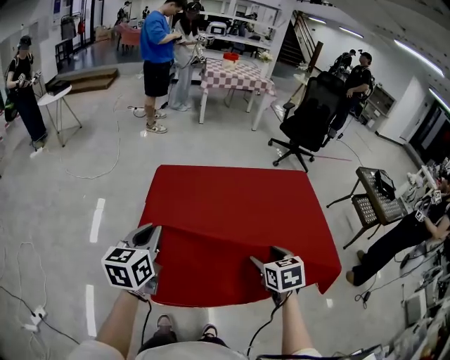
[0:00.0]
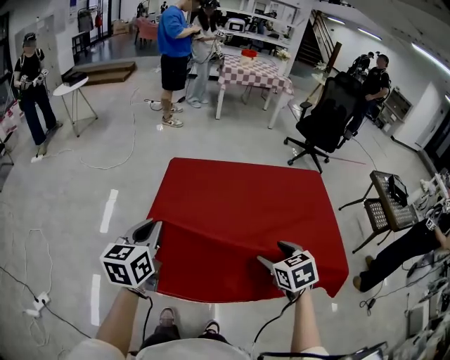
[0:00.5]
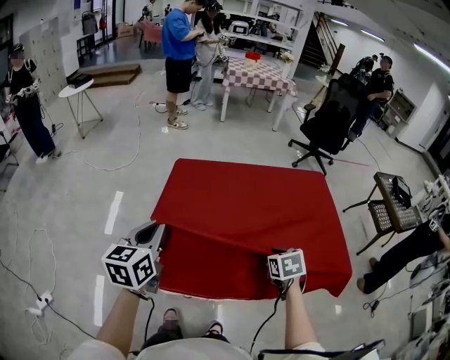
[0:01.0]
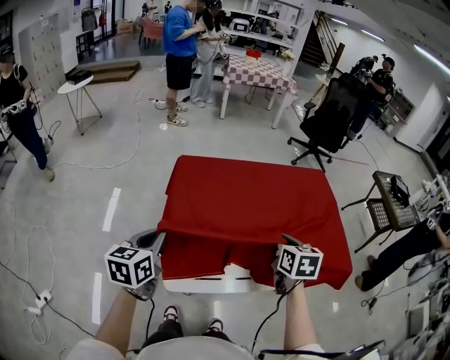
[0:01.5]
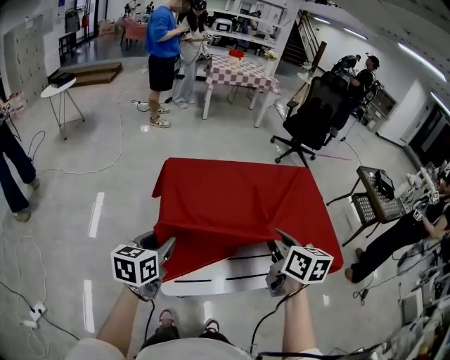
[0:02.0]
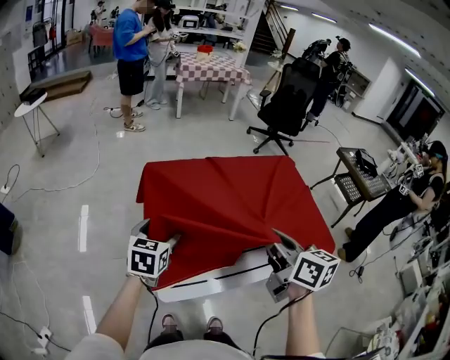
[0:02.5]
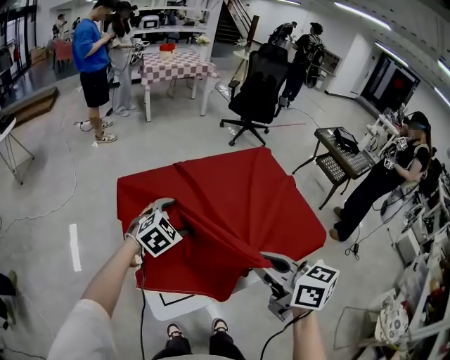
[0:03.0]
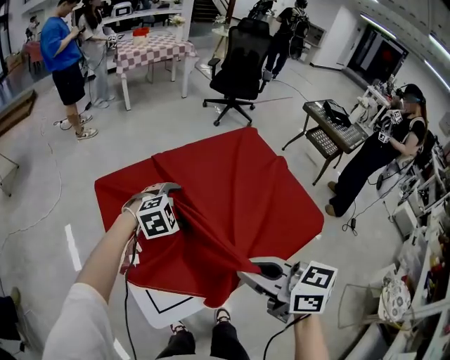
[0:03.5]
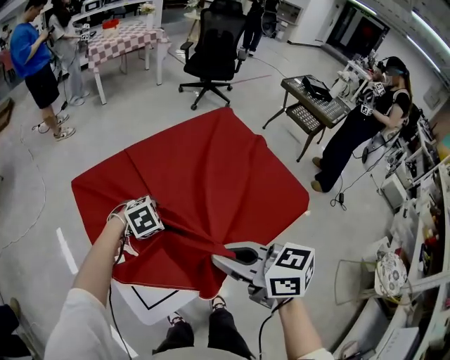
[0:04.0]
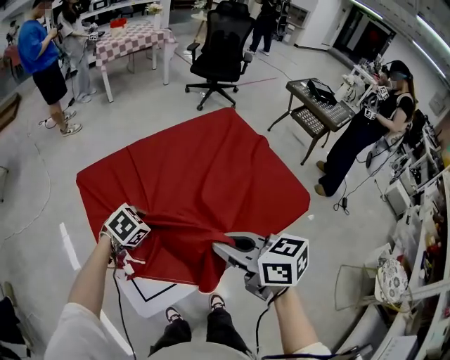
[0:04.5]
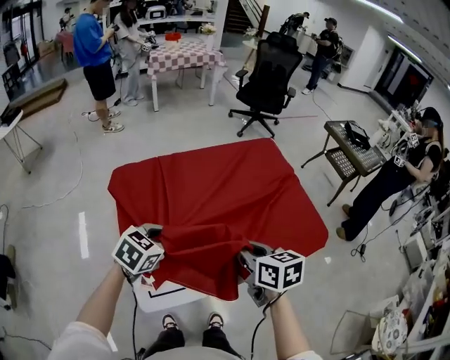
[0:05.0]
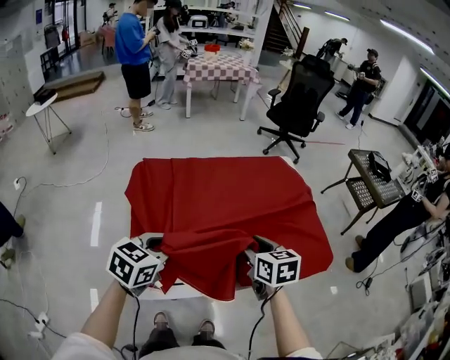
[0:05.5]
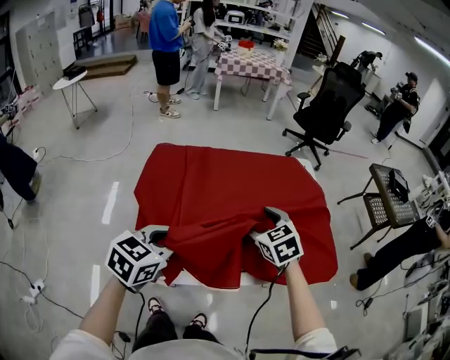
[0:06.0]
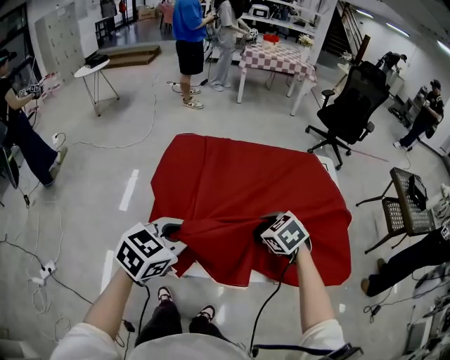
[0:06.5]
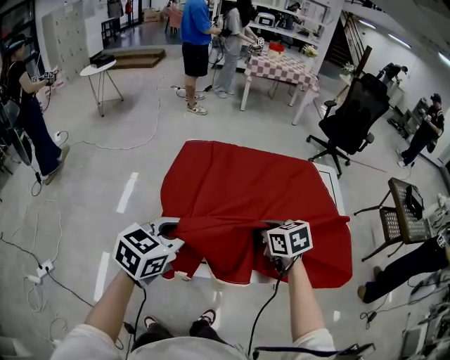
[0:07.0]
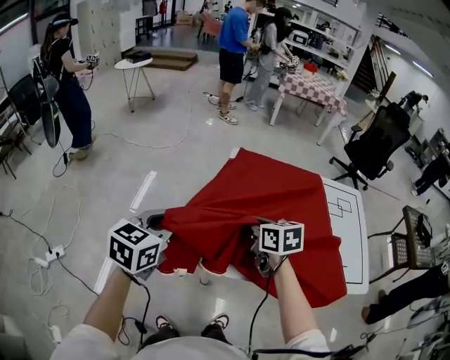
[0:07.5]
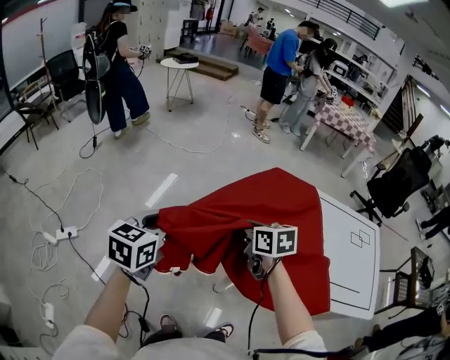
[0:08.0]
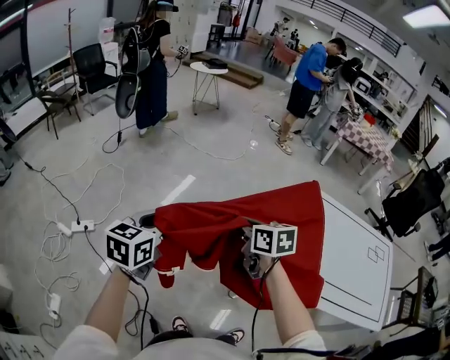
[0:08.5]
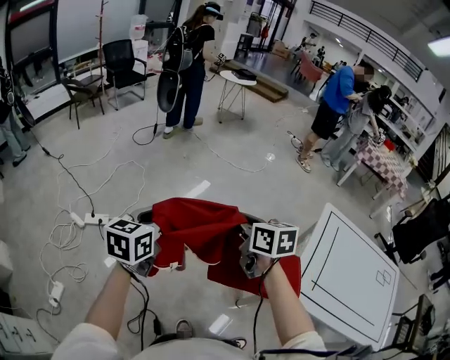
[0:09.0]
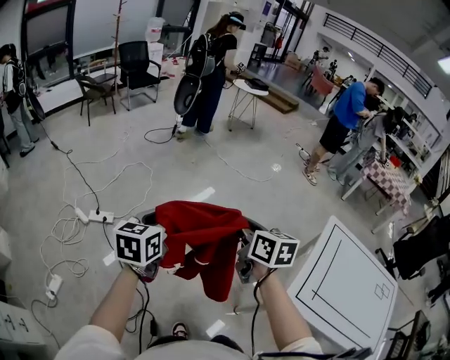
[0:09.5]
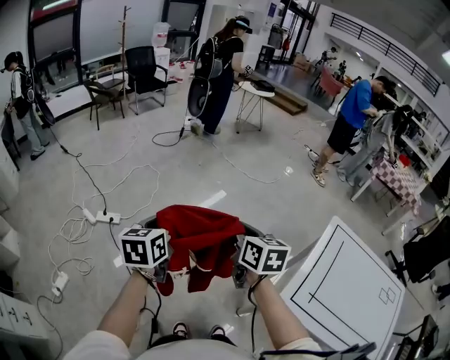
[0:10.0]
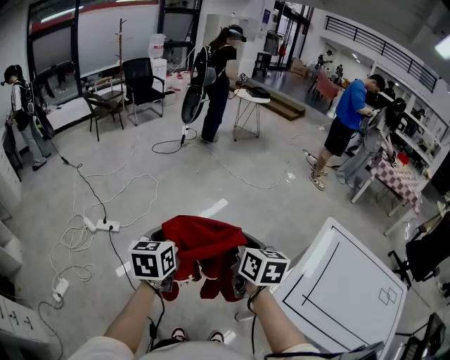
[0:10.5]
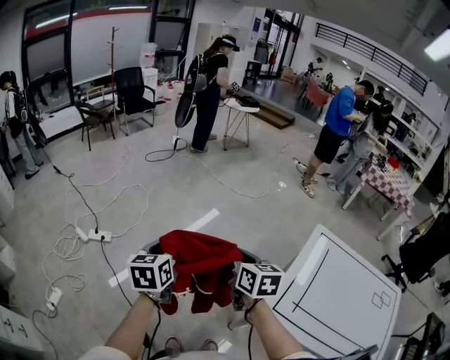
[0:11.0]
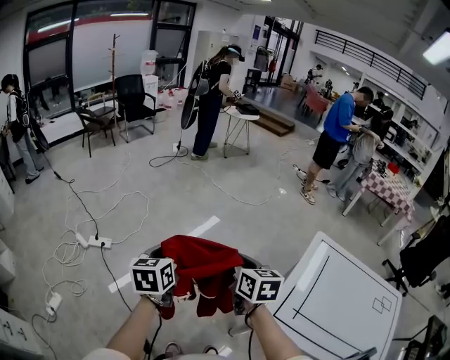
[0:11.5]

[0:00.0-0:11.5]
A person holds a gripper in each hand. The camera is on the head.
0:00.0 to 0:02.0: The right gripper shifts roughly 10 cm upward and to the left, swivels some 30 degrees, and closes, while the left gripper moves downward, roughly 5 cm.
0:02.0 to 0:04.0: The left gripper heads to the right, forward and downward, covering roughly 25 cm, points its fingers some 40 degrees further downward, and opens, then closes once more; the right gripper shifts approximately 10 cm backward.
0:04.0 to 0:06.0: The right gripper moves forward and downward, about 20 cm, rolls counterclockwise, seen from behind, by some 40 degrees, and opens up. The left gripper shifts roughly 20 cm upward and backward, tips its fingers upward by approximately 40 degrees, and closes its fingers.
0:06.0 to 0:07.5: The left gripper shifts by about 25 cm, and turns by roughly 30 degrees, while the right gripper ends up approximately 25 cm from where it was, swivels roughly 30 degrees, and closes.
0:07.5 to 0:09.5: Both grippers are carried roughly 40 cm. The left gripper turns by approximately 50 degrees, while the right gripper turns by approximately 30 degrees.
0:09.5 to 0:11.5: The grippers both shift to the right by some 10 cm.

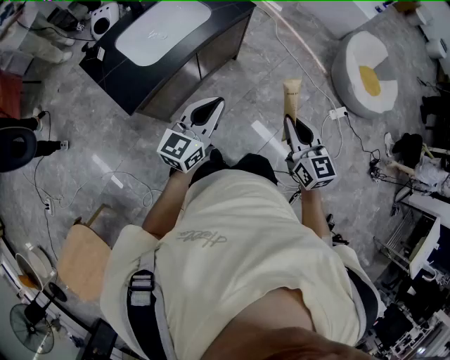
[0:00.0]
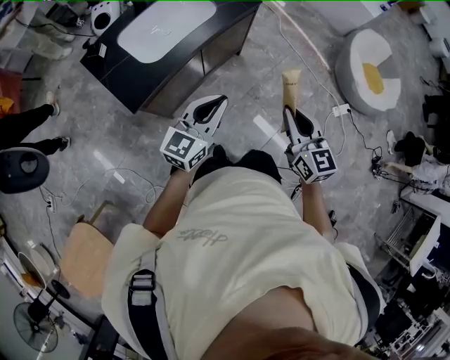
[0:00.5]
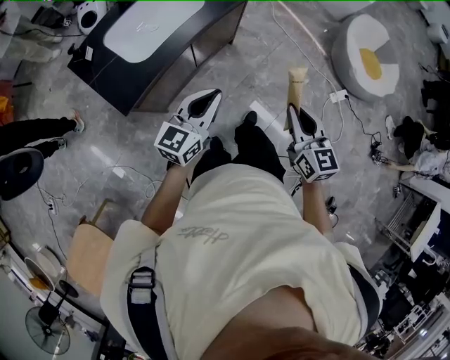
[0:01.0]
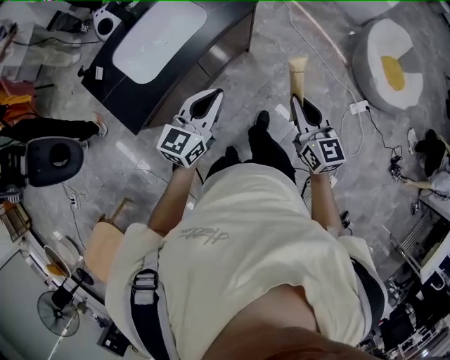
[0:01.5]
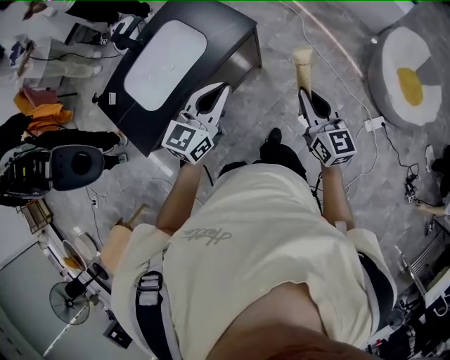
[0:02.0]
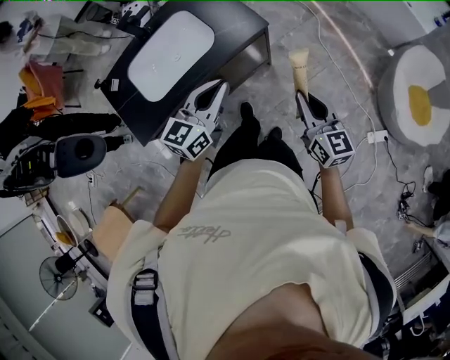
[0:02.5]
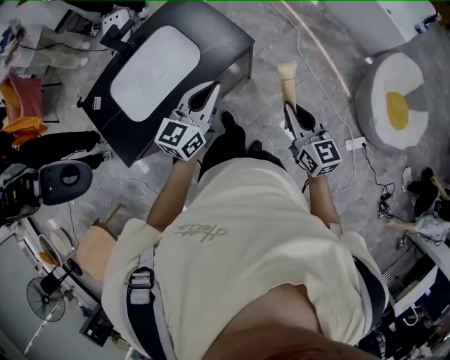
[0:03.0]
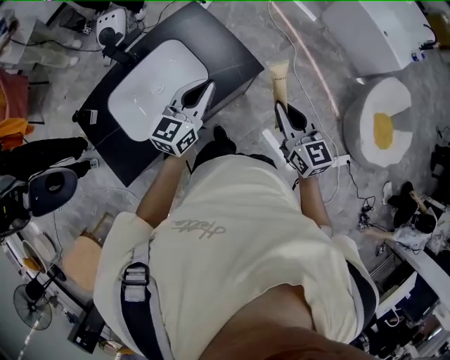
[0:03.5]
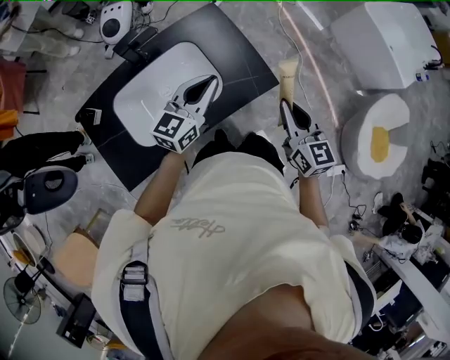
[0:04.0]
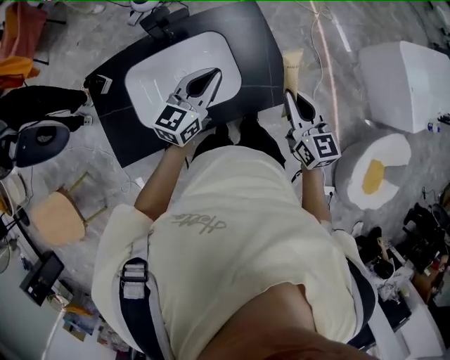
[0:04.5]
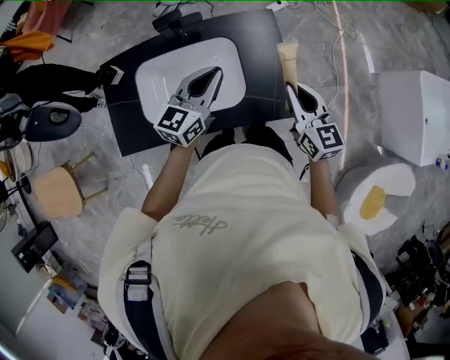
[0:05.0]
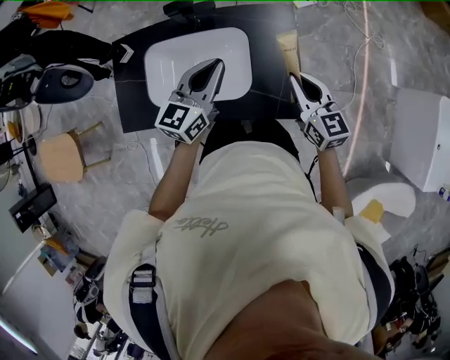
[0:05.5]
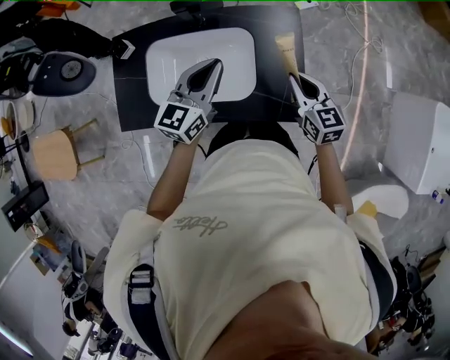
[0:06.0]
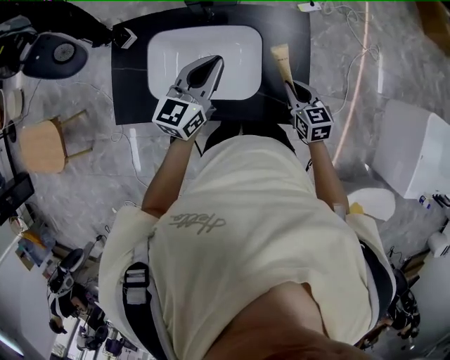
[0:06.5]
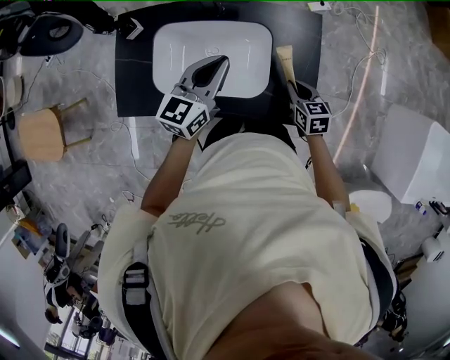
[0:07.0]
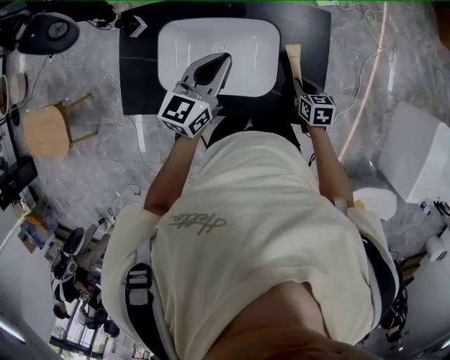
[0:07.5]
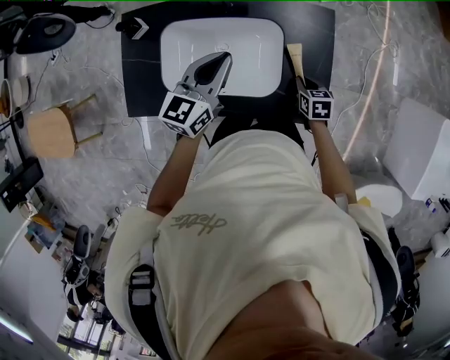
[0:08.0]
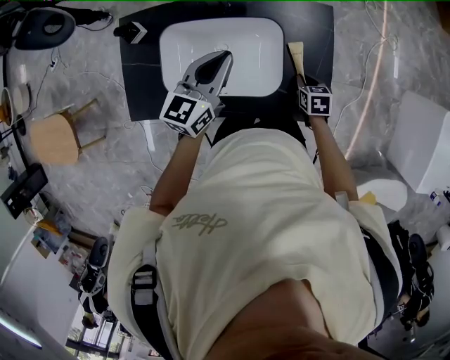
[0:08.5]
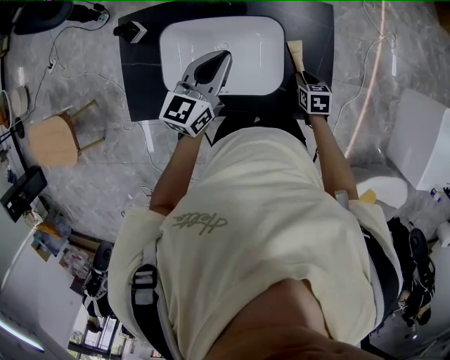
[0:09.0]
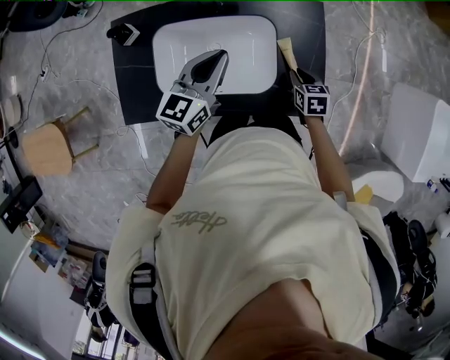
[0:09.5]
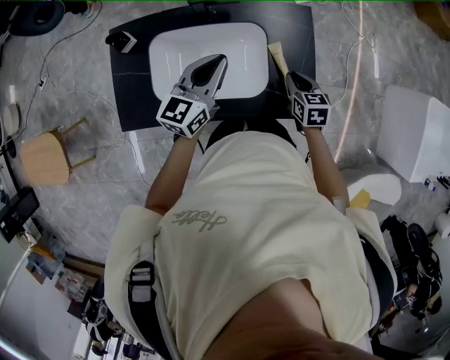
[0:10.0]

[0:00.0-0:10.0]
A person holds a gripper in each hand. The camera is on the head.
0:00.0 to 0:02.0: The grippers both shift forward by about 30 cm.
0:02.0 to 0:04.0: Both grippers move forward and to the left, some 35 cm.
0:04.0 to 0:06.0: The right gripper ends up approximately 25 cm from where it was, and swivels approximately 40 degrees; the left gripper ends up about 10 cm from where it was, and rotates roughly 40 degrees.
0:06.0 to 0:08.0: The right gripper is displaced downward by roughly 20 cm, and tips its fingers downward by some 30 degrees, while the left gripper travels to the left by approximately 10 cm.
0:08.0 to 0:10.0: The right gripper heads upward, covering approximately 10 cm.

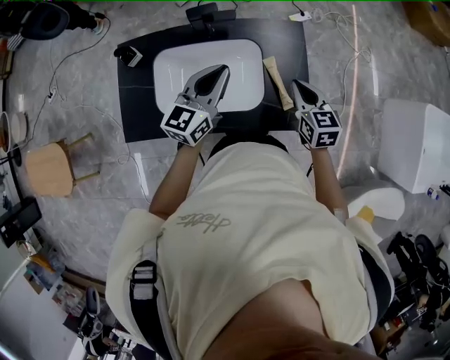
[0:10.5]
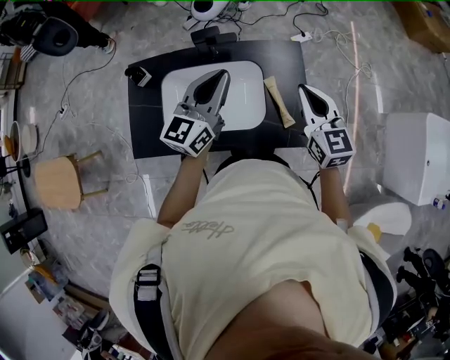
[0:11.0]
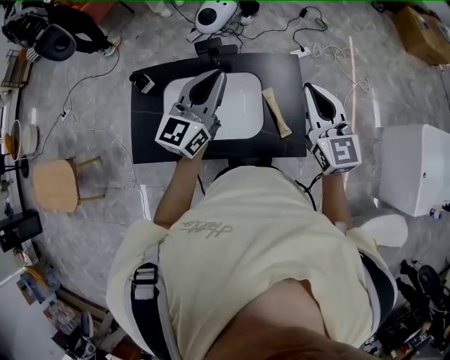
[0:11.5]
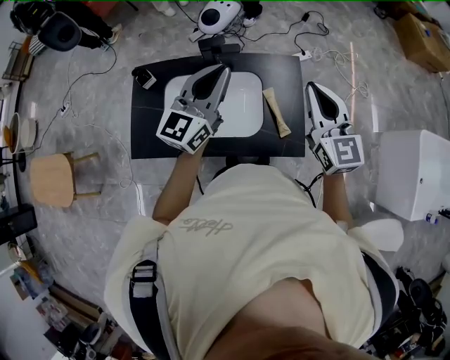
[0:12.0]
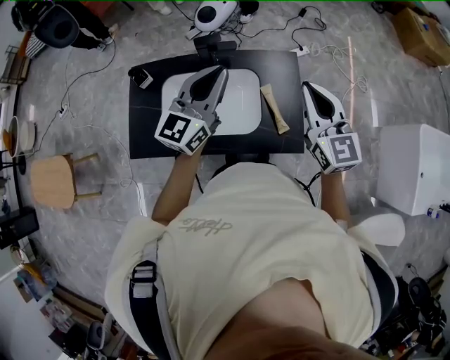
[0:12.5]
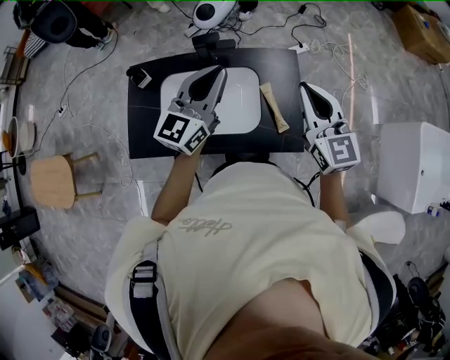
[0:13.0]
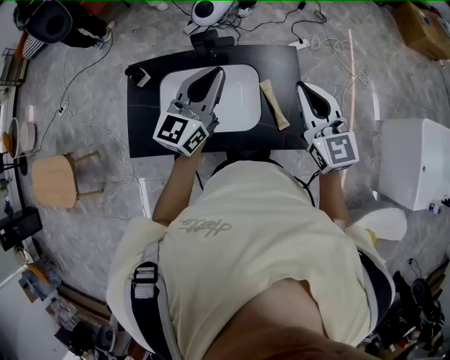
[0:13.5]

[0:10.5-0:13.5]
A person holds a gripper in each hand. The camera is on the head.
0:10.5 to 0:12.0: The left gripper goes approximately 15 cm upward. Meanwhile the right gripper travels upward by roughly 20 cm, and rotates roughly 30 degrees.
0:12.0 to 0:13.5: There are only small adjustments of the grippers.

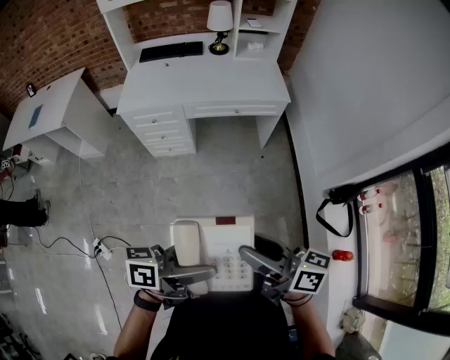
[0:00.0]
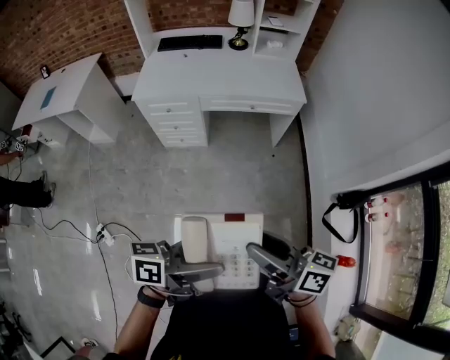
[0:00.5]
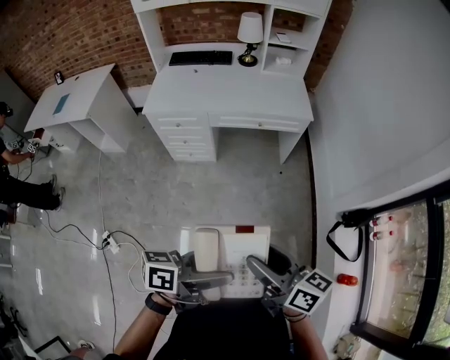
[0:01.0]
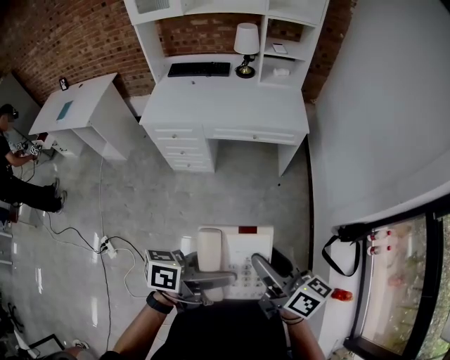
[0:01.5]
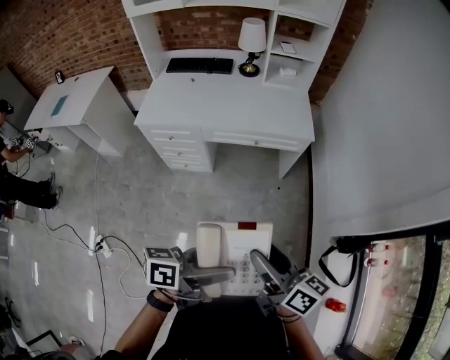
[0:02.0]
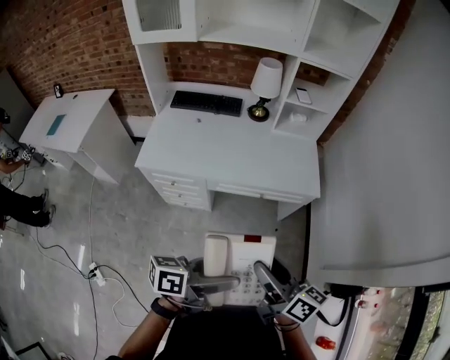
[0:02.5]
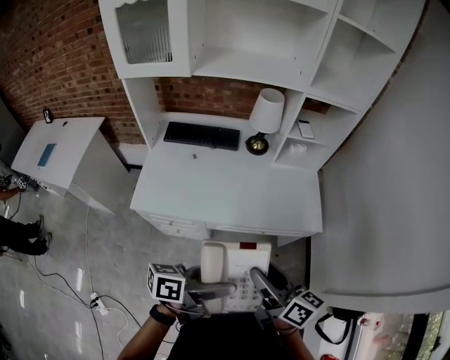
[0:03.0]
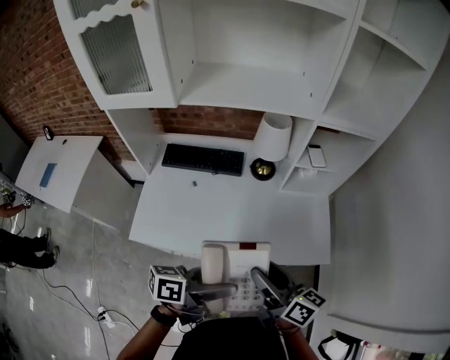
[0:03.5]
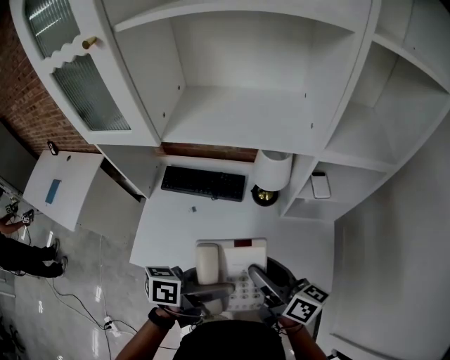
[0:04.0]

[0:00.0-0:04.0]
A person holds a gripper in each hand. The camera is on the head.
0:00.0 to 0:02.0: The grippers both shift forward by some 15 cm.
0:02.0 to 0:04.0: The pair of grippers is taken forward, about 70 cm.
